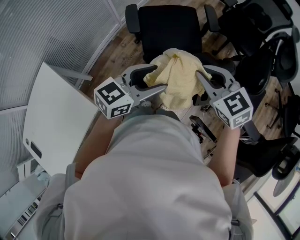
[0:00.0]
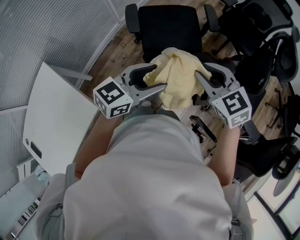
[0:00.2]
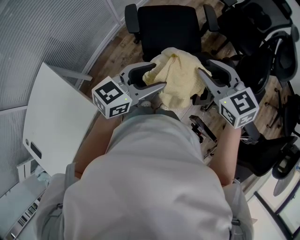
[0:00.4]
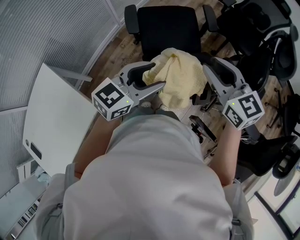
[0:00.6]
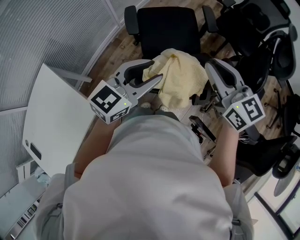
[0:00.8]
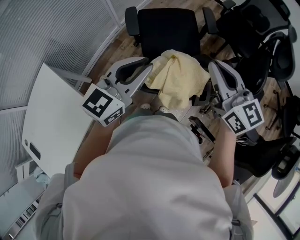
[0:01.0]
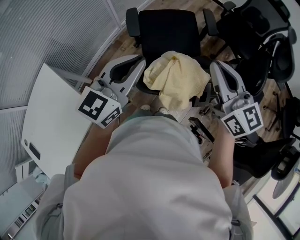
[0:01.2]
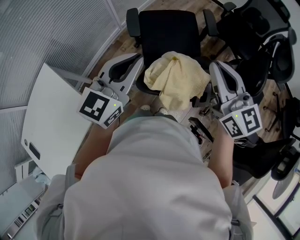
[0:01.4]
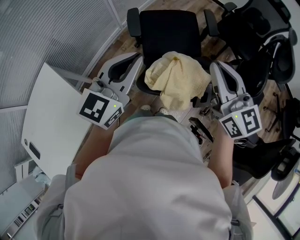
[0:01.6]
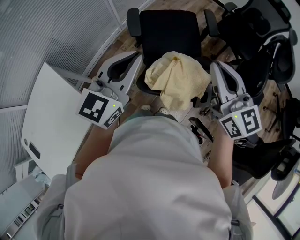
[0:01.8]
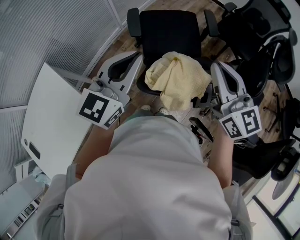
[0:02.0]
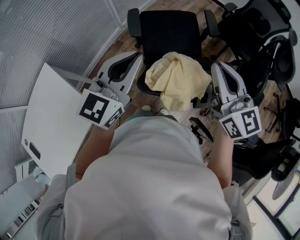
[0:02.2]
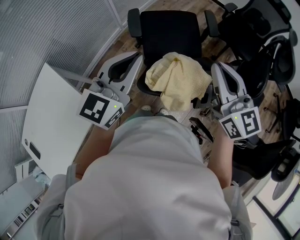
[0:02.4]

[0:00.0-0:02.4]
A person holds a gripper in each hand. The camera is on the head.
0:00.0 to 0:01.2: The left gripper travels upward and to the left by some 10 cm, changes its angle by about 30 degrees, and closes its fingers, while the right gripper heads upward, covering roughly 10 cm, angles its fingers upward, by some 30 degrees, and opens, then closes once more.
0:01.2 to 0:02.4: The grippers stay close to where they were, moving slightly.

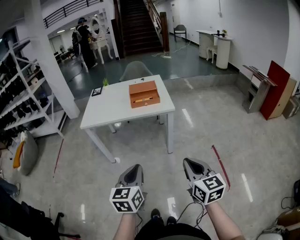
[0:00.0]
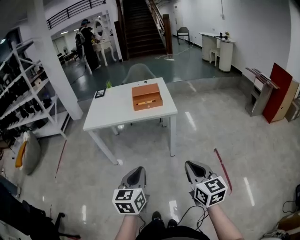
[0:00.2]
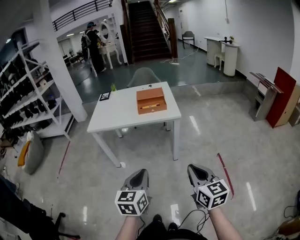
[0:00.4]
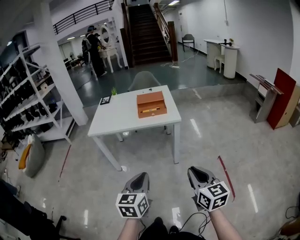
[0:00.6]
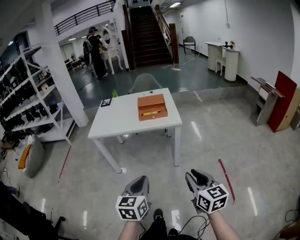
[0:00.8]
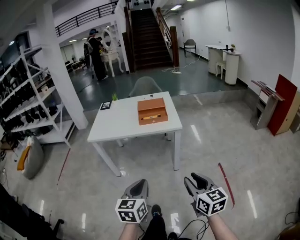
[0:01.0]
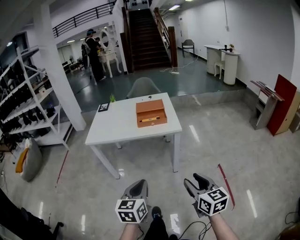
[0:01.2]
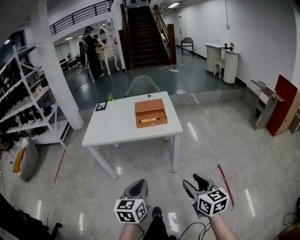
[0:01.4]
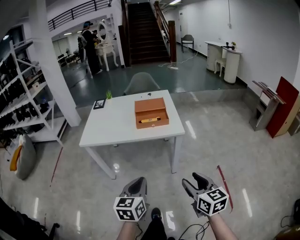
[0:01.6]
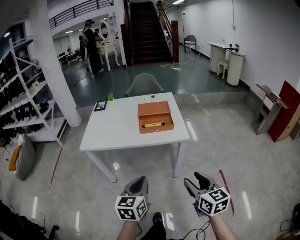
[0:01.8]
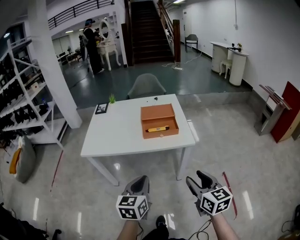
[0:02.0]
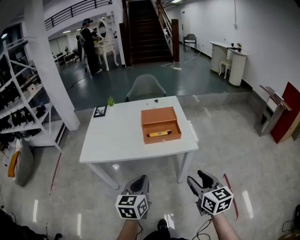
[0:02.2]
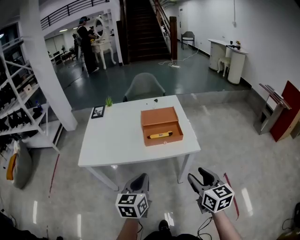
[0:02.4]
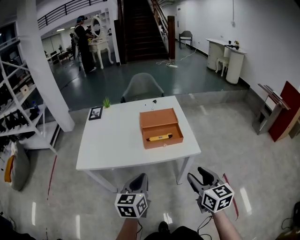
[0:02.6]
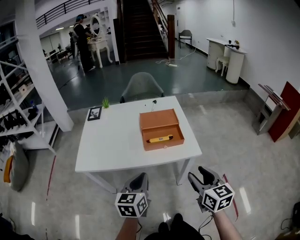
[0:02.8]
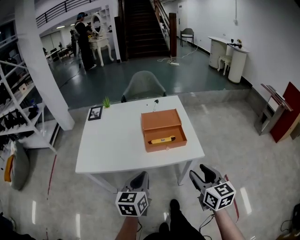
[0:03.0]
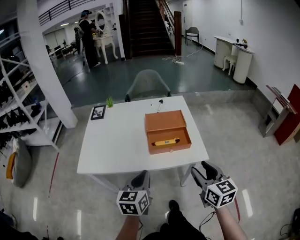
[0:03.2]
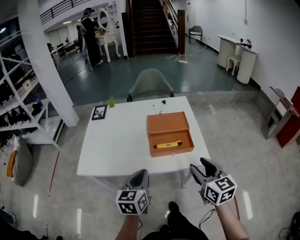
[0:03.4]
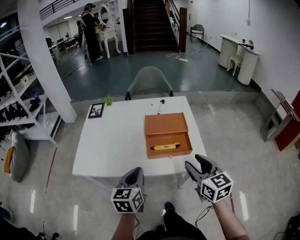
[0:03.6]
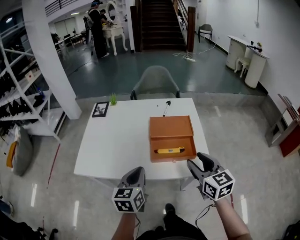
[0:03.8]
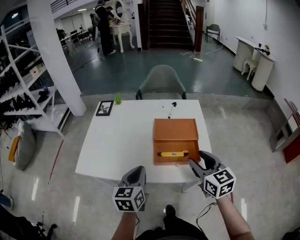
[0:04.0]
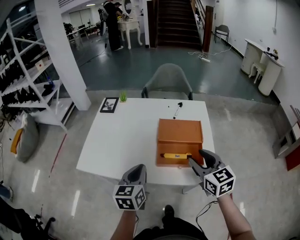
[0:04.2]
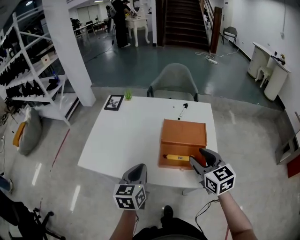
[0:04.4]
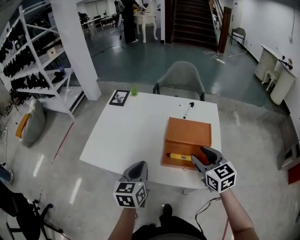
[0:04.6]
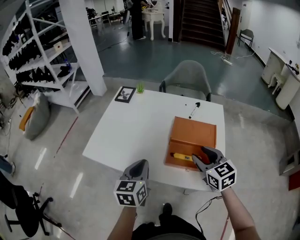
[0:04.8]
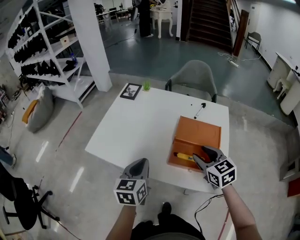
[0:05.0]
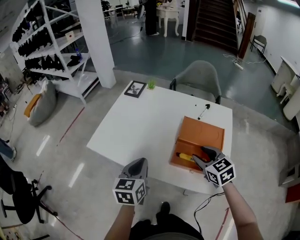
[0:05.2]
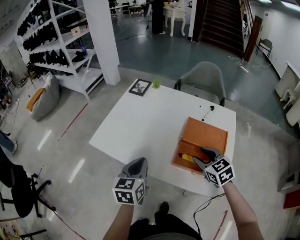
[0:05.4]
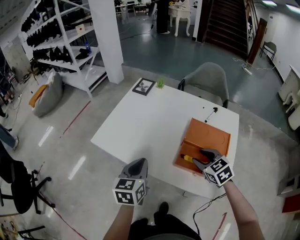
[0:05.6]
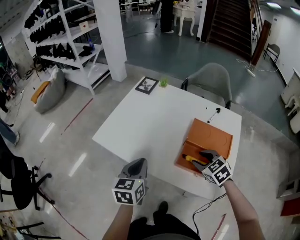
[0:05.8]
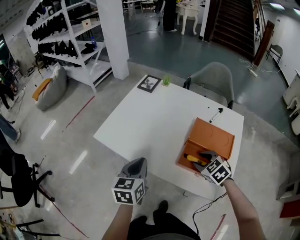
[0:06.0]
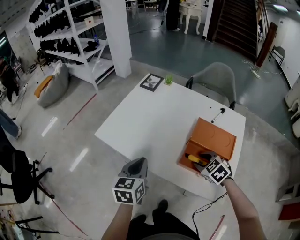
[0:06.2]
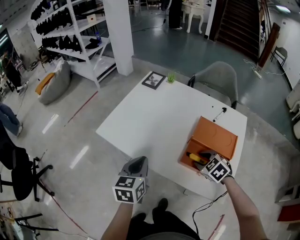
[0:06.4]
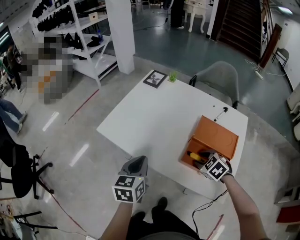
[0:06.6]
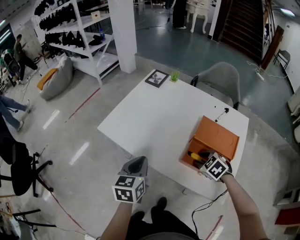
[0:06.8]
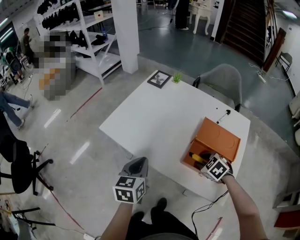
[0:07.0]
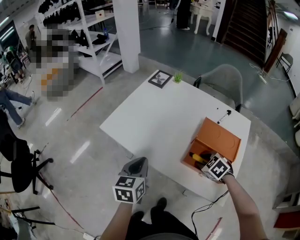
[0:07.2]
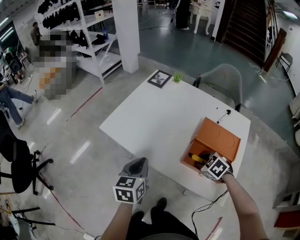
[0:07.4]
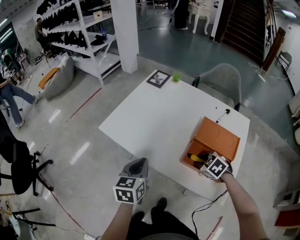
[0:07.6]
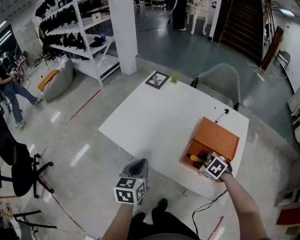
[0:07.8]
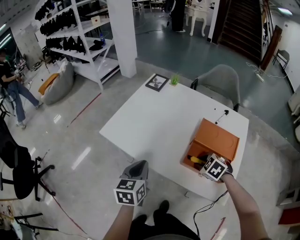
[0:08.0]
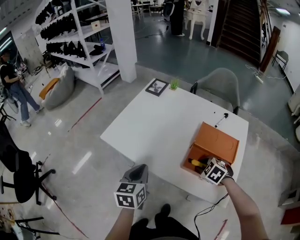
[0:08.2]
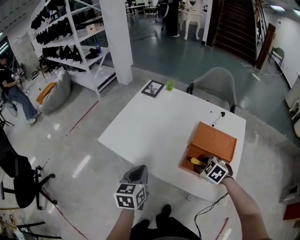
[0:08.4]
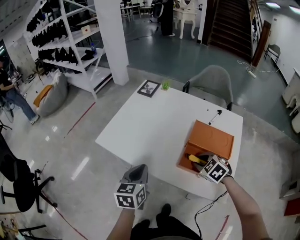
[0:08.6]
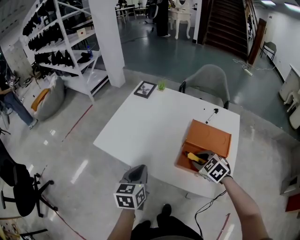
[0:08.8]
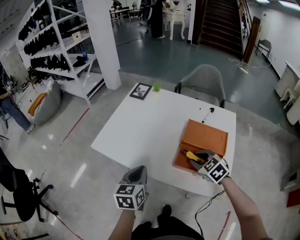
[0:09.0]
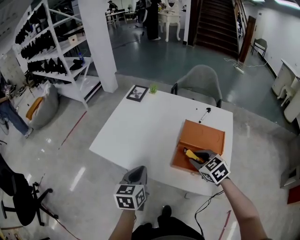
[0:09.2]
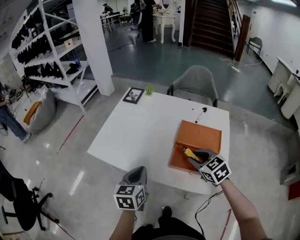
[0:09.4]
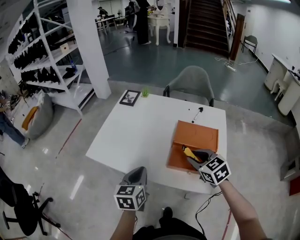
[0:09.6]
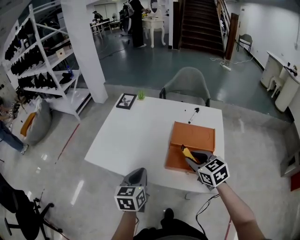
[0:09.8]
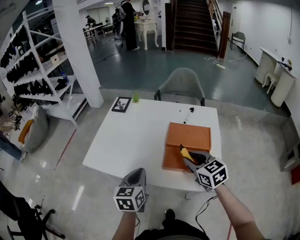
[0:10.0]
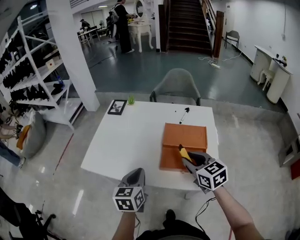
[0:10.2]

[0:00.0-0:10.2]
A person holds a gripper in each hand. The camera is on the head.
0:00.0 to 0:01.4: The grippers both shift forward by some 10 cm. The right gripper opens its fingers.
0:01.4 to 0:03.0: Both grippers move forward, about 35 cm.
0:03.0 to 0:04.4: The left gripper is displaced forward by approximately 15 cm. Meanwhile the right gripper is displaced forward by about 25 cm, and swivels about 30 degrees.
0:04.4 to 0:05.8: The right gripper shifts approximately 15 cm downward, forward and to the left, and turns by approximately 40 degrees. The left gripper heads to the left, covering roughly 10 cm.
0:05.8 to 0:07.2: The right gripper goes roughly 5 cm downward.
0:07.2 to 0:08.8: The grippers move only a little.
0:08.8 to 0:10.2: The right gripper goes approximately 10 cm upward, and swivels approximately 40 degrees. Meanwhile the left gripper travels to the right by some 5 cm.

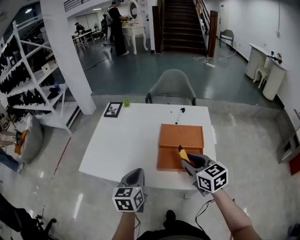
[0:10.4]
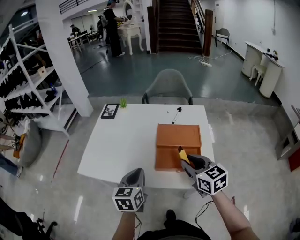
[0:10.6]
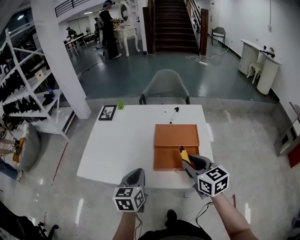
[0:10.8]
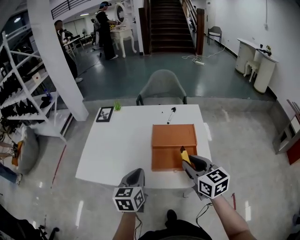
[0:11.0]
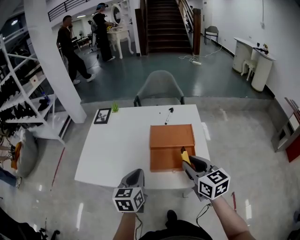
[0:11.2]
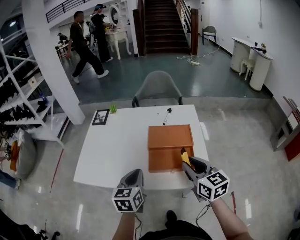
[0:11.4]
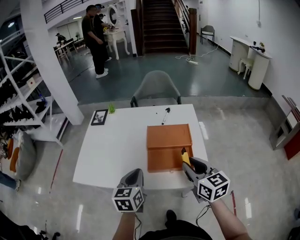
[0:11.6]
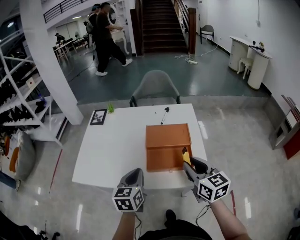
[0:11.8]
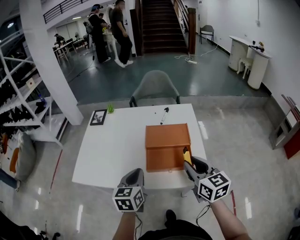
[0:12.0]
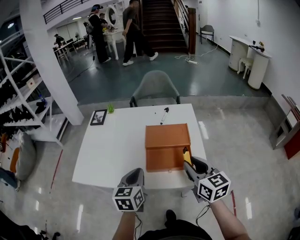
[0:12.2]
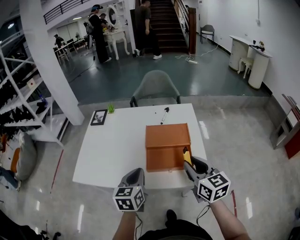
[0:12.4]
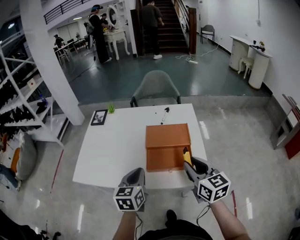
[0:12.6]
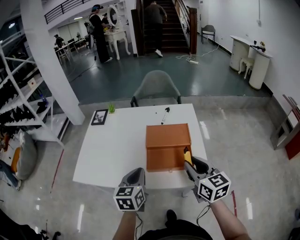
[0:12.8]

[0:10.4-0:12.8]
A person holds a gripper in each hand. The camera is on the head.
0:10.4 to 0:11.6: The right gripper shifts about 5 cm to the right.
0:11.6 to 0:12.8: The two grippers keep their place.

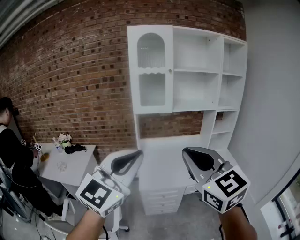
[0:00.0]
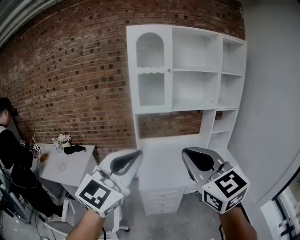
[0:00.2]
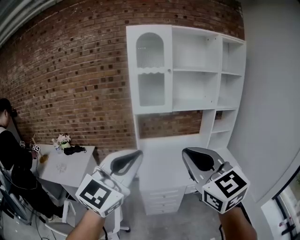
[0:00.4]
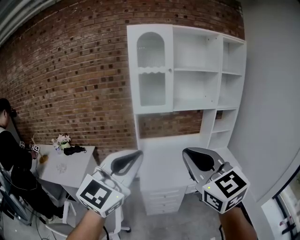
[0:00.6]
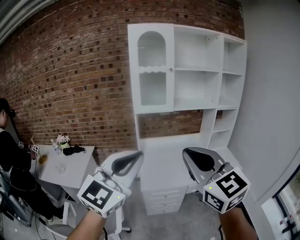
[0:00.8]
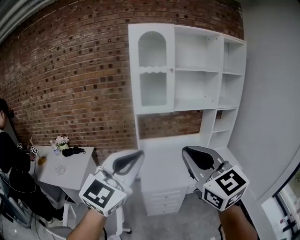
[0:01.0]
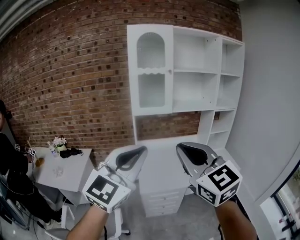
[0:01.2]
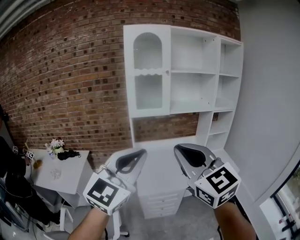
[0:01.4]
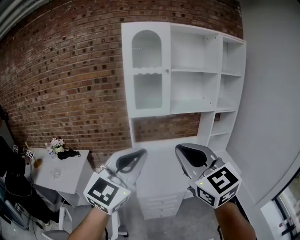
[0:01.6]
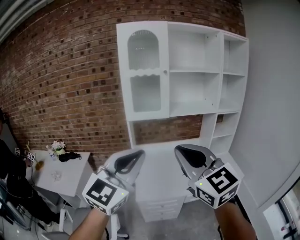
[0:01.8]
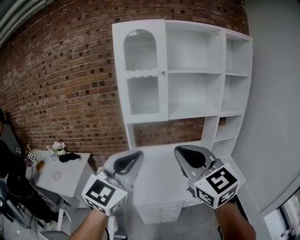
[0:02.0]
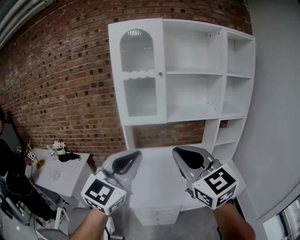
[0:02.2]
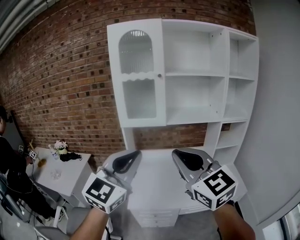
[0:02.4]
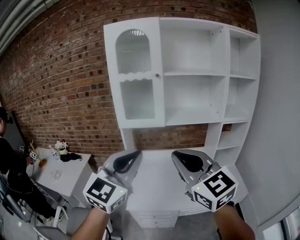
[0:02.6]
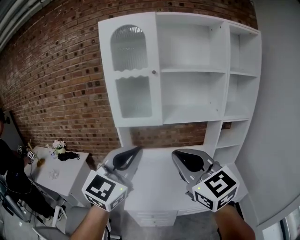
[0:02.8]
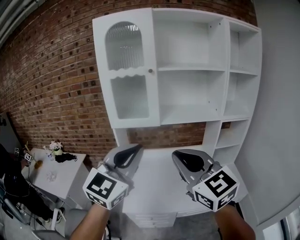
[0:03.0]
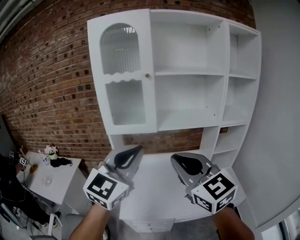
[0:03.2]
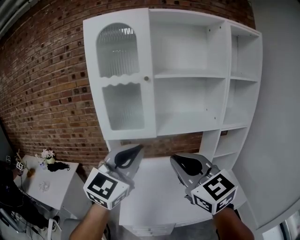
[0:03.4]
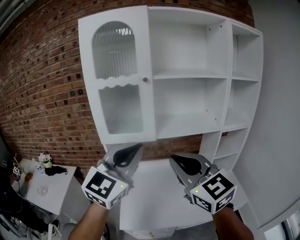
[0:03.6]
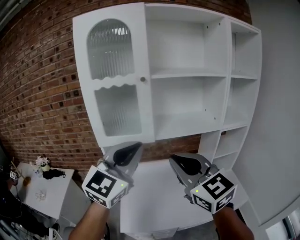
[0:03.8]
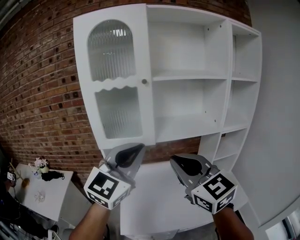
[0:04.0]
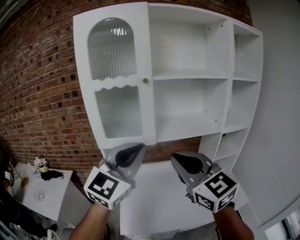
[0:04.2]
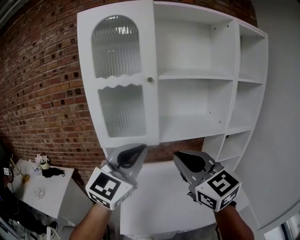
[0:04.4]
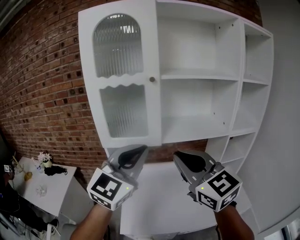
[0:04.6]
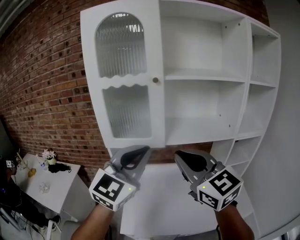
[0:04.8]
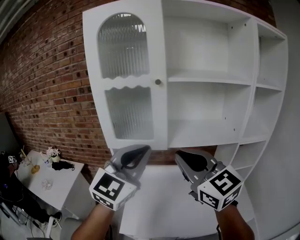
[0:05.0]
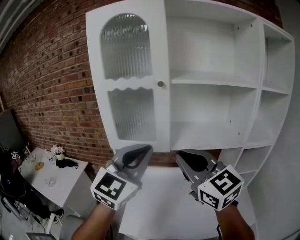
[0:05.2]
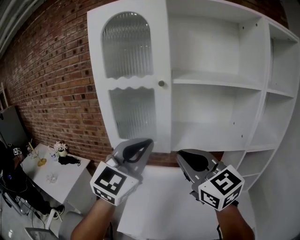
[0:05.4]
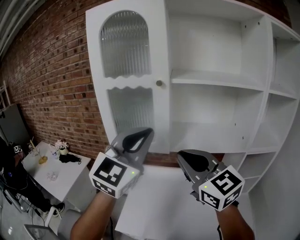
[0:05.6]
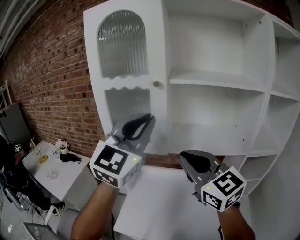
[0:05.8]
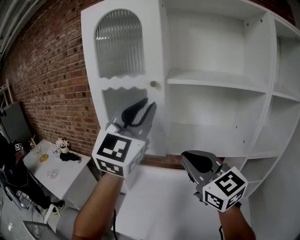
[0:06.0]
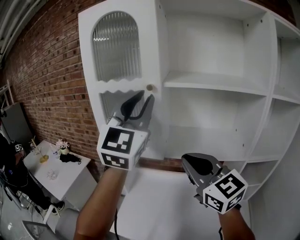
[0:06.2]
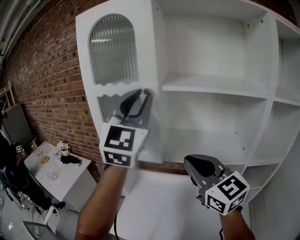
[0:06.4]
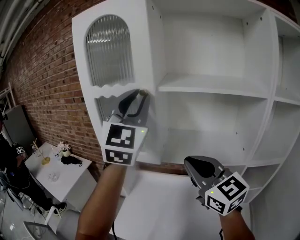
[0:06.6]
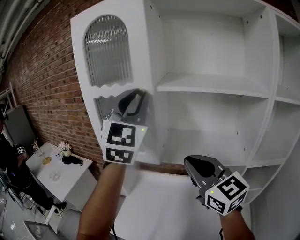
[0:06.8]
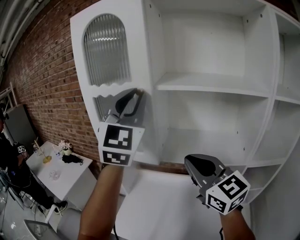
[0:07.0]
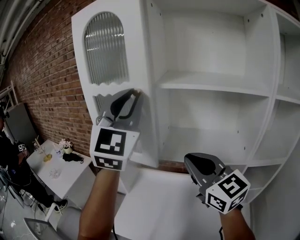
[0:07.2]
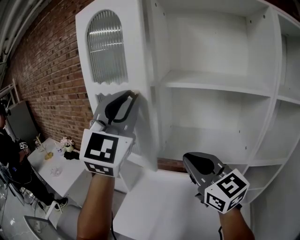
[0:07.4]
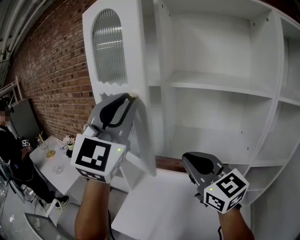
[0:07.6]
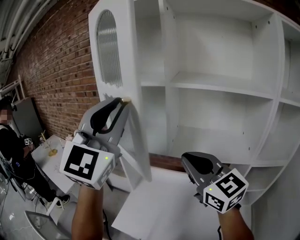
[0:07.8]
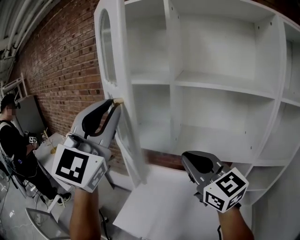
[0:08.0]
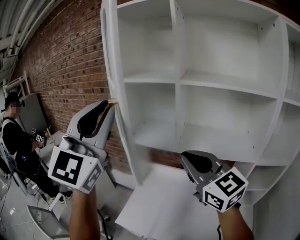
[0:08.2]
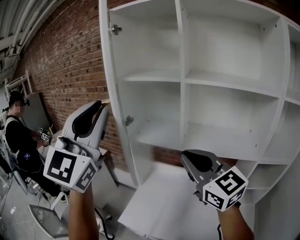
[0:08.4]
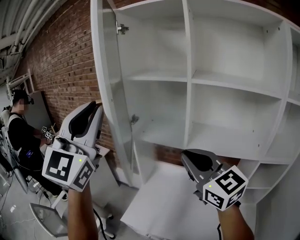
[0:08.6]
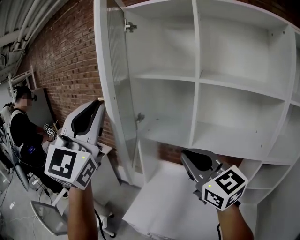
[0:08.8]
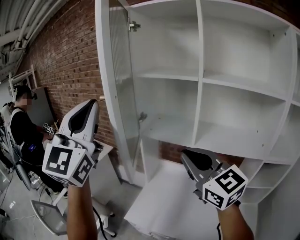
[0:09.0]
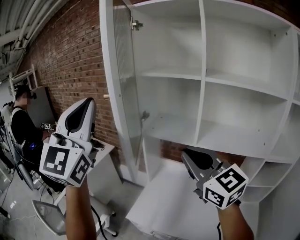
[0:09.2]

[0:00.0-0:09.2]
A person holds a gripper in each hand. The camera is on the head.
0:00.0 to 0:01.6: The grippers both shift forward by some 10 cm.
0:01.6 to 0:03.0: Both grippers travel together forward and to the right, about 25 cm.
0:03.0 to 0:04.6: The grippers both shift forward by some 15 cm.
0:04.6 to 0:06.2: The left gripper is displaced upward, forward and to the right by roughly 20 cm, and turns by about 30 degrees. Meanwhile the right gripper heads forward and to the right, covering roughly 15 cm.
0:06.2 to 0:07.6: The left gripper moves about 5 cm.
0:07.6 to 0:09.2: The left gripper is displaced to the left by about 25 cm; the right gripper heads to the left, covering roughly 15 cm.
